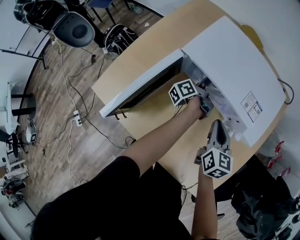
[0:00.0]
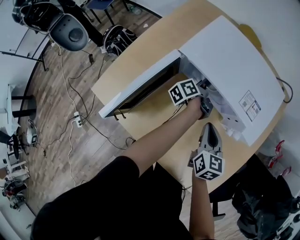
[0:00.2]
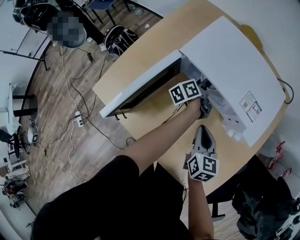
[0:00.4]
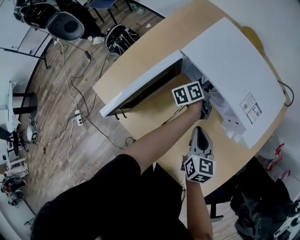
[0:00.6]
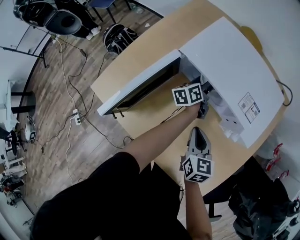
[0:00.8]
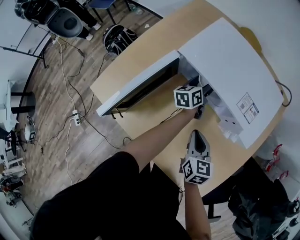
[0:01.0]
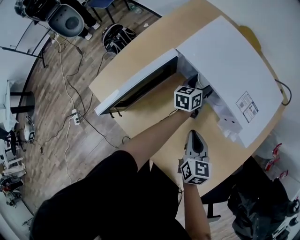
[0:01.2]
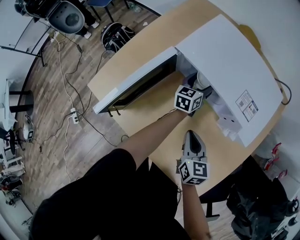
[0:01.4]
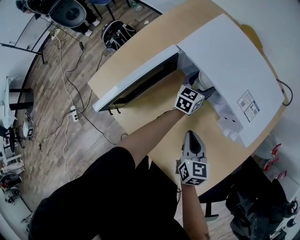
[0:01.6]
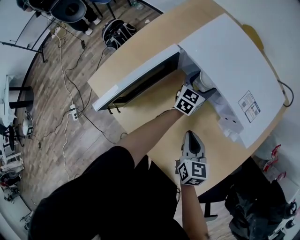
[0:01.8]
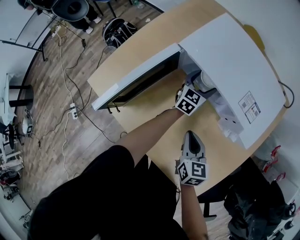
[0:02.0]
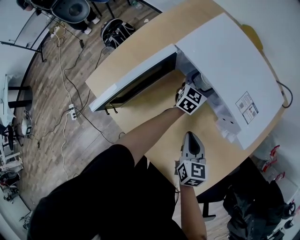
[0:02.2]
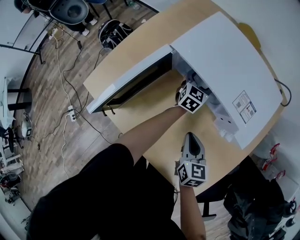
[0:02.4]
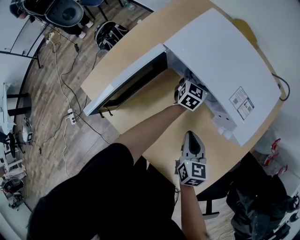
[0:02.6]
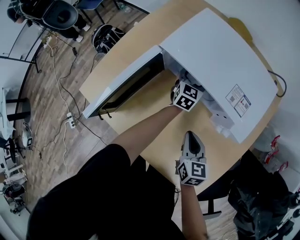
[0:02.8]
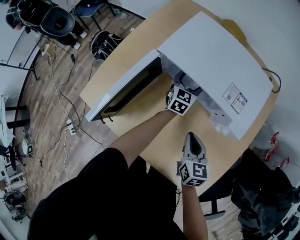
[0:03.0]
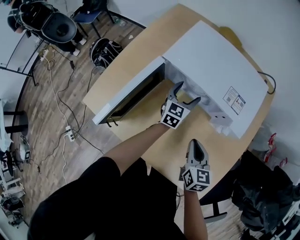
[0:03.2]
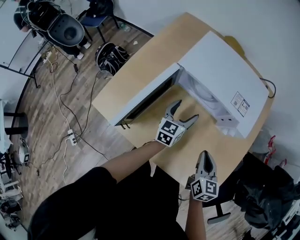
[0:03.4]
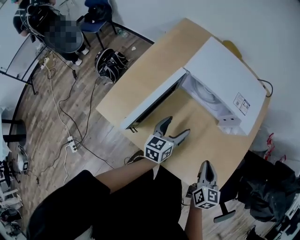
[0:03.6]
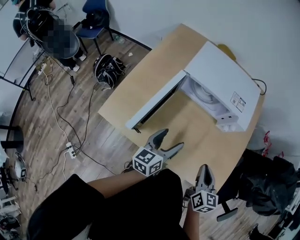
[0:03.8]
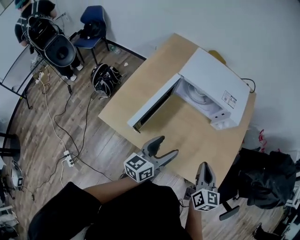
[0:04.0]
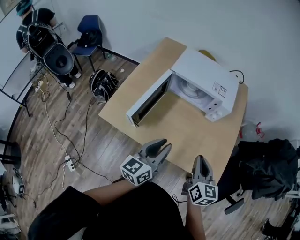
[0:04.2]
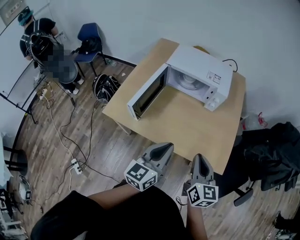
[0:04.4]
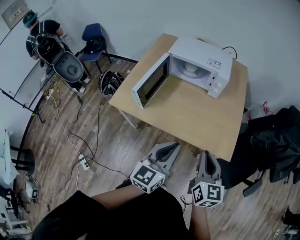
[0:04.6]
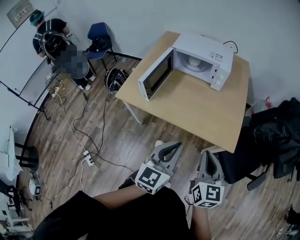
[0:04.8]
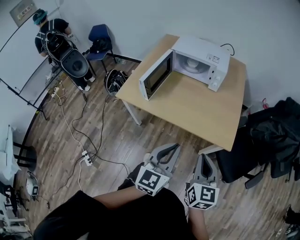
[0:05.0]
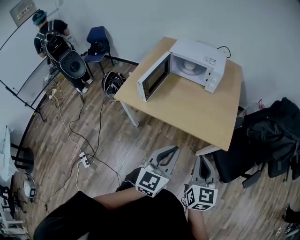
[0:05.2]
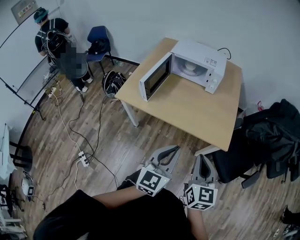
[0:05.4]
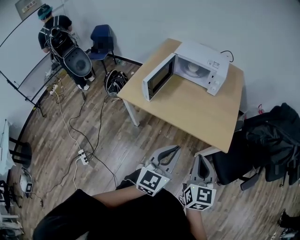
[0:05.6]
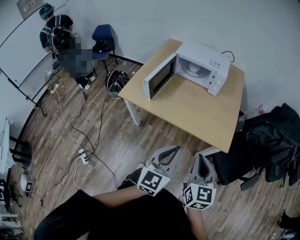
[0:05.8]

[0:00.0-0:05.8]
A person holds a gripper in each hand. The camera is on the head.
0:00.0 to 0:01.4: The right gripper changes place by roughly 10 cm.
0:02.8 to 0:04.4: The right gripper changes place by some 35 cm, and swivels about 30 degrees.
0:04.4 to 0:05.8: The right gripper moves approximately 20 cm.

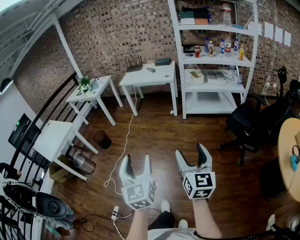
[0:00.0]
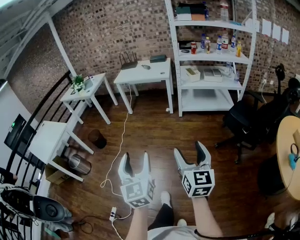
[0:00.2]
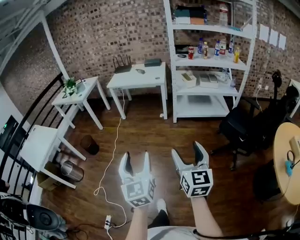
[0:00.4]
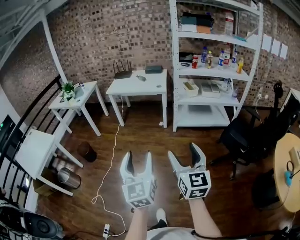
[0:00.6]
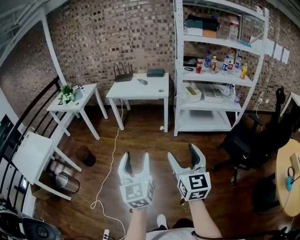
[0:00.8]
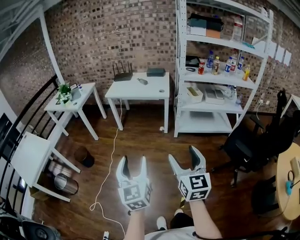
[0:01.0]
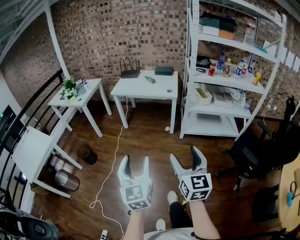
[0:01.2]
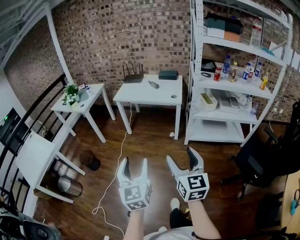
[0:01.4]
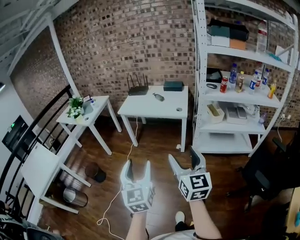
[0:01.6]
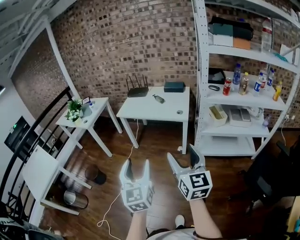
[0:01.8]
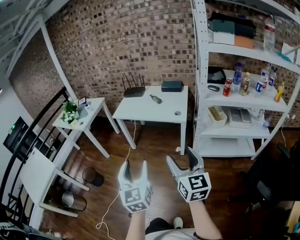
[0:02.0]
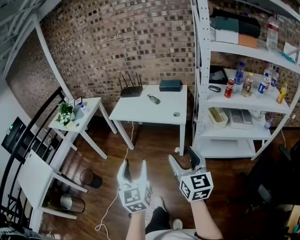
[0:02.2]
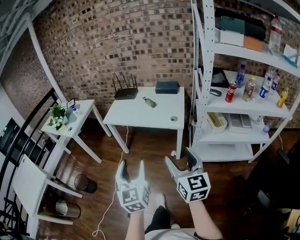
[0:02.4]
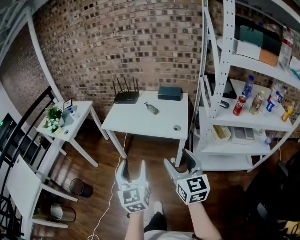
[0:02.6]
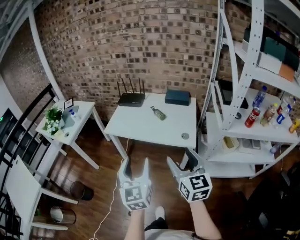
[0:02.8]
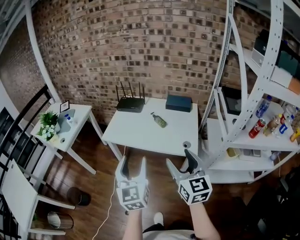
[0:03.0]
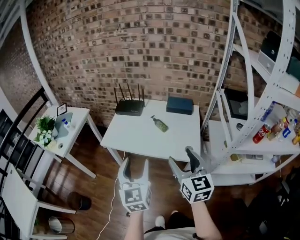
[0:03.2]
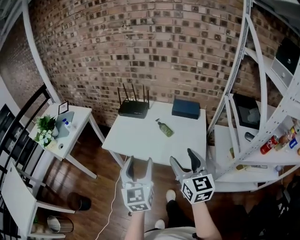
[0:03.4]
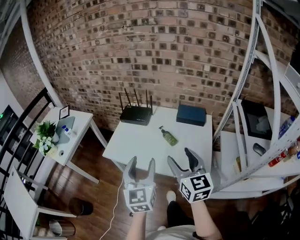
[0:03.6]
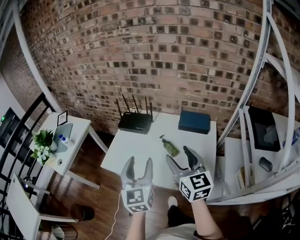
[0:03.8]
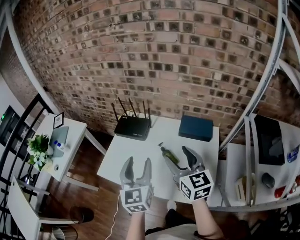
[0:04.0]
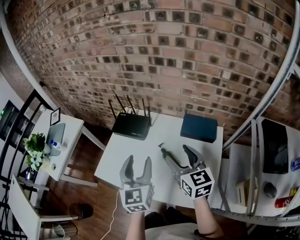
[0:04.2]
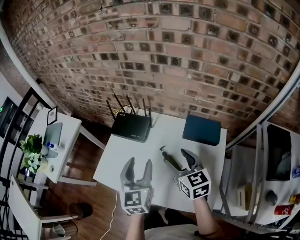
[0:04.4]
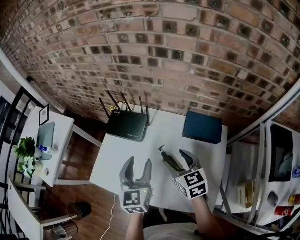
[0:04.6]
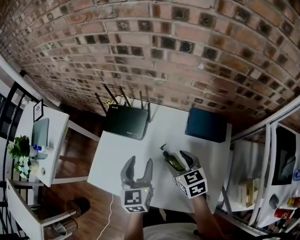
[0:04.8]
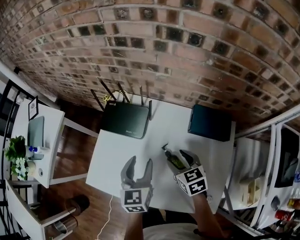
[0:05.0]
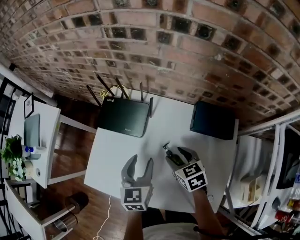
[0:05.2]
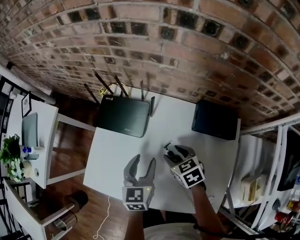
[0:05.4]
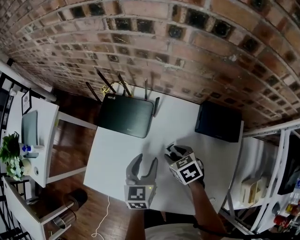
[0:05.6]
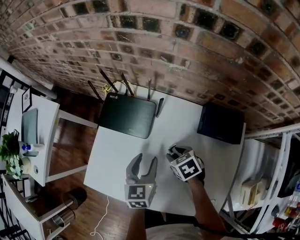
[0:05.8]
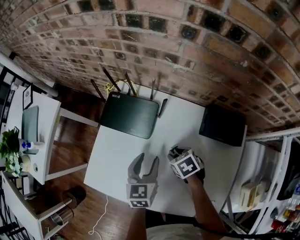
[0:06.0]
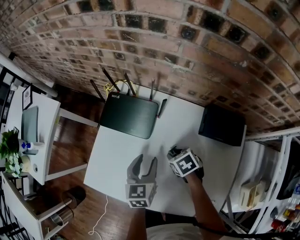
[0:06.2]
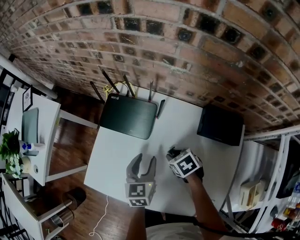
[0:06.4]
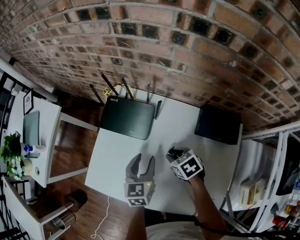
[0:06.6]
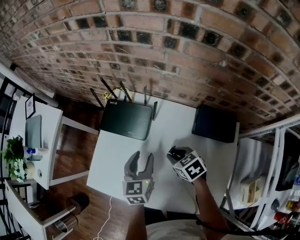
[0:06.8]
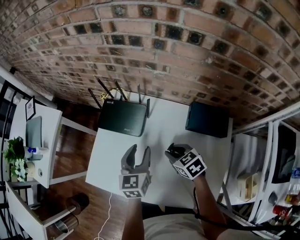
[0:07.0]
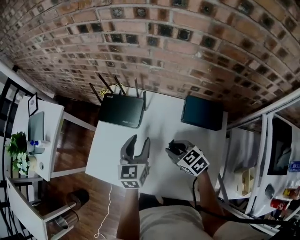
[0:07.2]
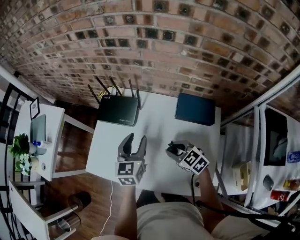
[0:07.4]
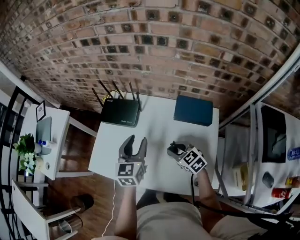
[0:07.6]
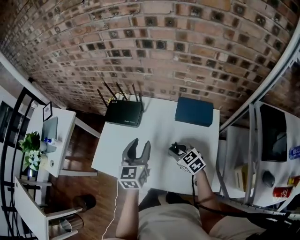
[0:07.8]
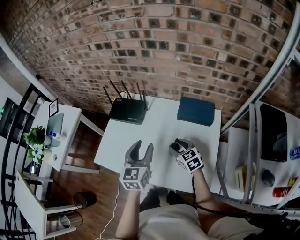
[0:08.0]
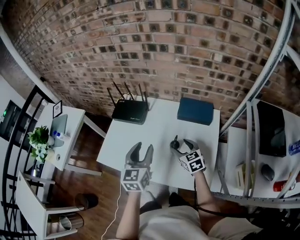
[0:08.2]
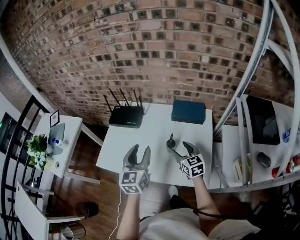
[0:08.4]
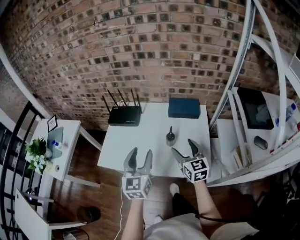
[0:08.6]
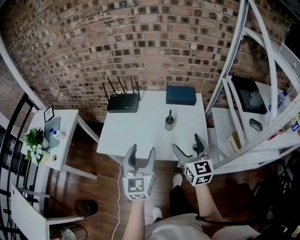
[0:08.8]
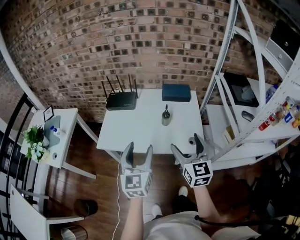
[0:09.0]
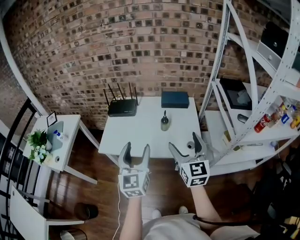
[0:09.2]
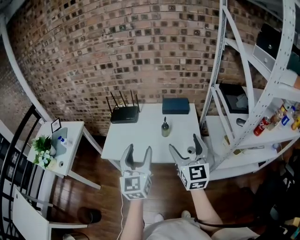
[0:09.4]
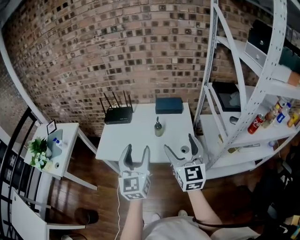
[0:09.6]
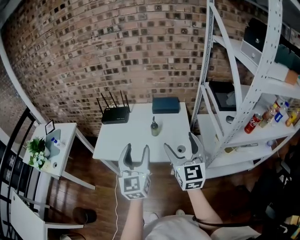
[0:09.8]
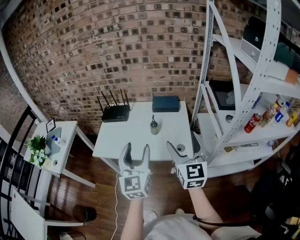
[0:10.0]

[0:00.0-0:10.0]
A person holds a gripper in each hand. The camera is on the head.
0:00.0 to 0:01.4: The two grippers travel together, forward, roughly 40 cm.
0:01.4 to 0:02.8: Both grippers are carried forward, roughly 50 cm.
0:02.8 to 0:04.2: Both grippers are carried forward, some 50 cm.
0:04.2 to 0:05.8: Both grippers move downward and forward, some 30 cm. The right gripper tilts its fingers approximately 50 degrees downward, while the left gripper changes its angle by approximately 30 degrees.
0:05.8 to 0:07.2: The left gripper is displaced upward by some 10 cm. Meanwhile the right gripper travels upward and backward by about 10 cm, and turns by roughly 30 degrees.
0:07.2 to 0:08.6: The two grippers go some 25 cm backward and upward. The right gripper changes its angle by approximately 50 degrees, and opens its fingers.
0:08.6 to 0:10.0: Both grippers move backward and upward, about 25 cm. The right gripper swivels approximately 20 degrees.

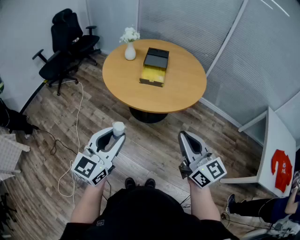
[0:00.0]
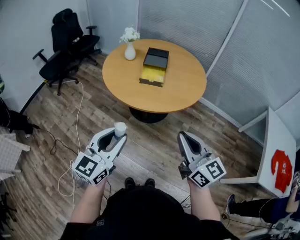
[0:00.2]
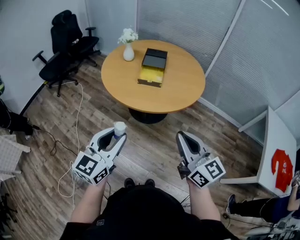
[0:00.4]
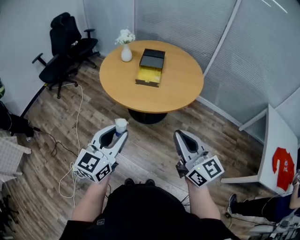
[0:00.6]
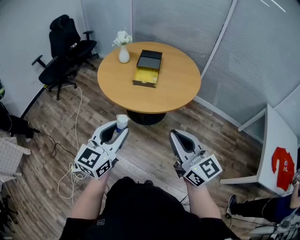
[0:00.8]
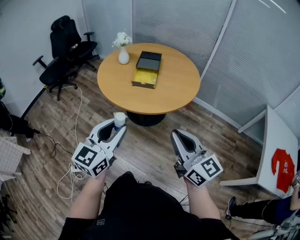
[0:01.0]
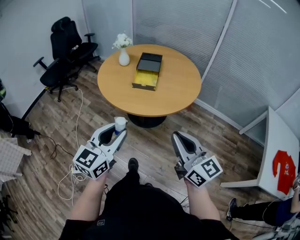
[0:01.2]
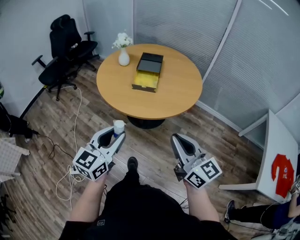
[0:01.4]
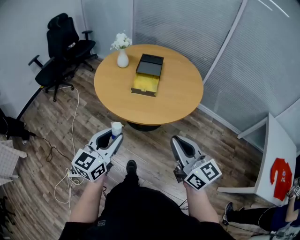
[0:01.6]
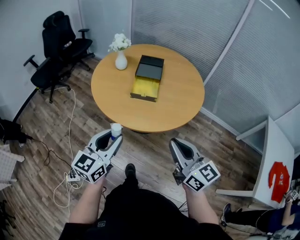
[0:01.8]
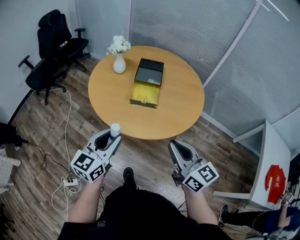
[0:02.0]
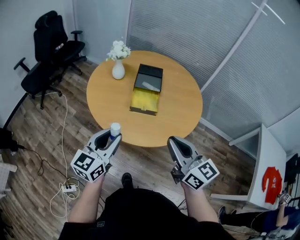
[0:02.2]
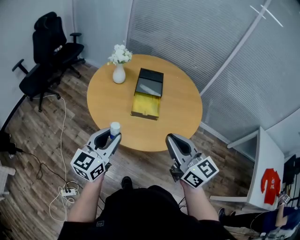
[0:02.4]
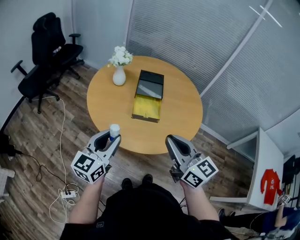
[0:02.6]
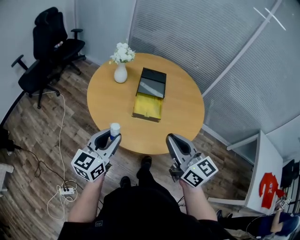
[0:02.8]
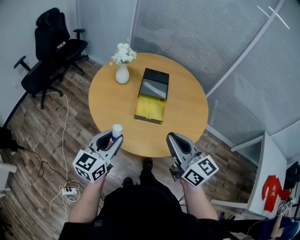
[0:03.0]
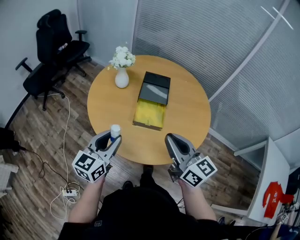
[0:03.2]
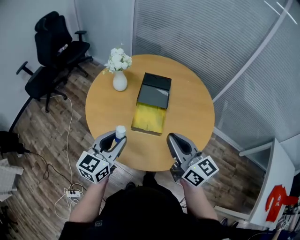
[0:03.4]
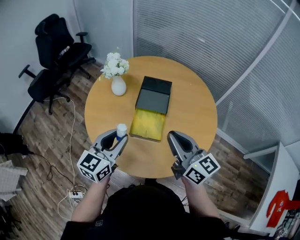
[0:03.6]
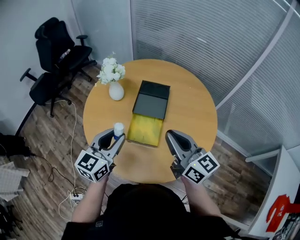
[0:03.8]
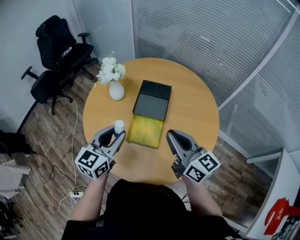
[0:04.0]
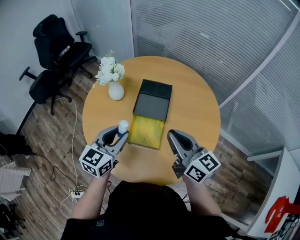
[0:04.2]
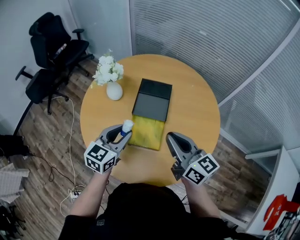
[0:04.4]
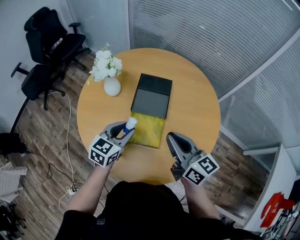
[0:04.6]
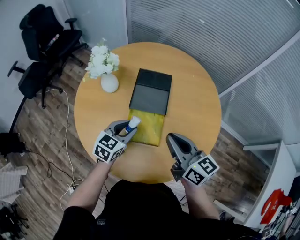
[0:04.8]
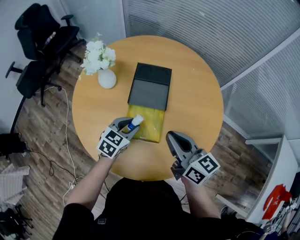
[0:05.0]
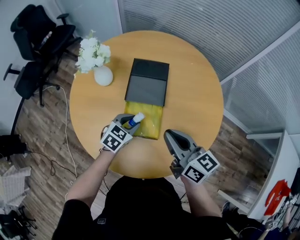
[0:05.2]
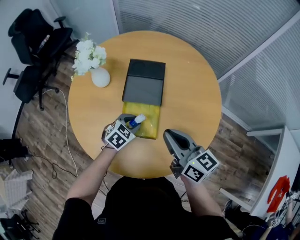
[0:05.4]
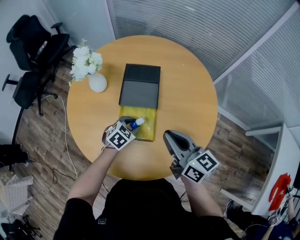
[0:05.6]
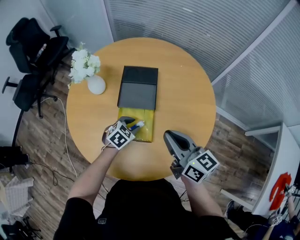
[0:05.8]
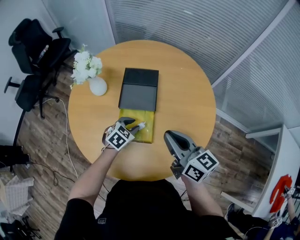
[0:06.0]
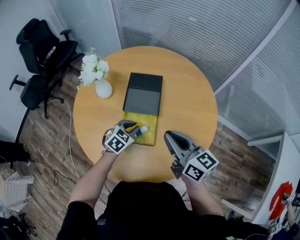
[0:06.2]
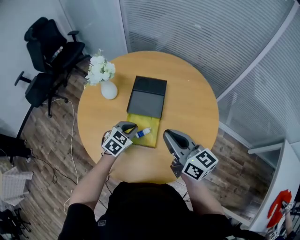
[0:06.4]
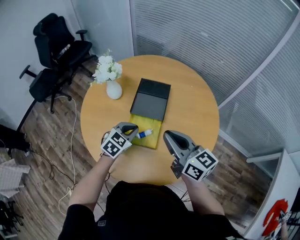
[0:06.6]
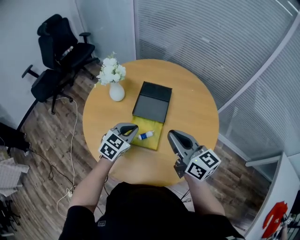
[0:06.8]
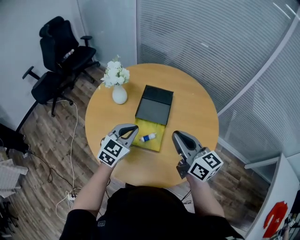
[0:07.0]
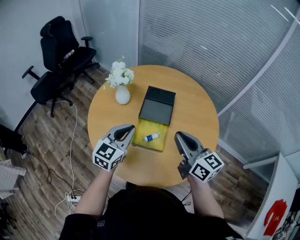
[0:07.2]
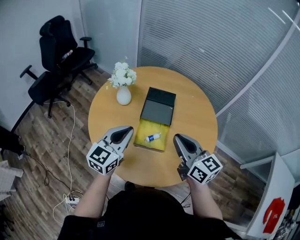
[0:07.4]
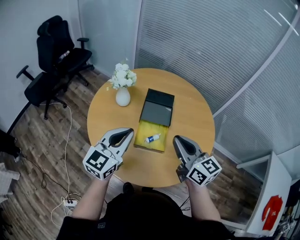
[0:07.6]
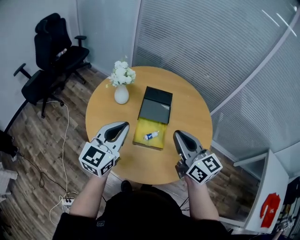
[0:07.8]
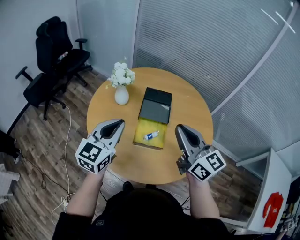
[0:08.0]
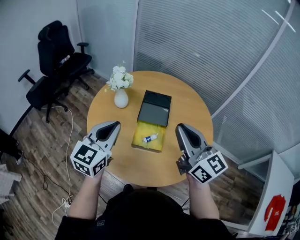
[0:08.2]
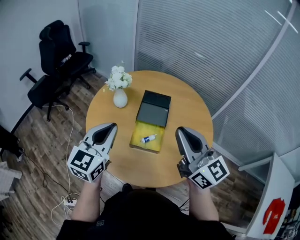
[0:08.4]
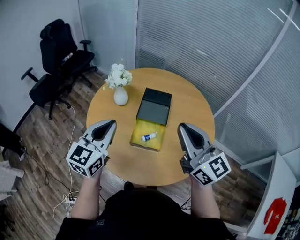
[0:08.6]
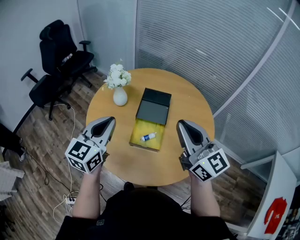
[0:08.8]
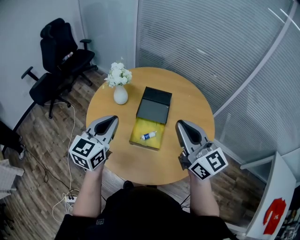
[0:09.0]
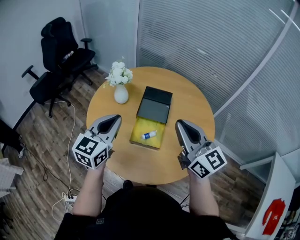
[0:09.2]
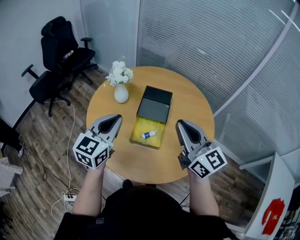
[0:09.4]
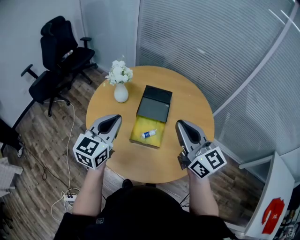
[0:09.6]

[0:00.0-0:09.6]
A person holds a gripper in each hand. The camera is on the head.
0:00.0 to 0:01.6: The two grippers go some 10 cm forward.
0:01.6 to 0:03.2: Both grippers travel together forward, roughly 30 cm.
0:03.2 to 0:04.8: The left gripper shifts approximately 30 cm forward, downward and to the right, and changes its angle by some 30 degrees. Meanwhile the right gripper travels forward and downward by about 20 cm.
0:04.8 to 0:06.4: The left gripper reaches some 10 cm downward, then returns, and closes.
0:06.4 to 0:08.0: The left gripper travels upward and to the left by approximately 30 cm, and tips its fingers upward by roughly 40 degrees. Meanwhile the right gripper moves upward, to the left and backward, about 15 cm.
0:08.0 to 0:09.6: The grippers make only small movements.
